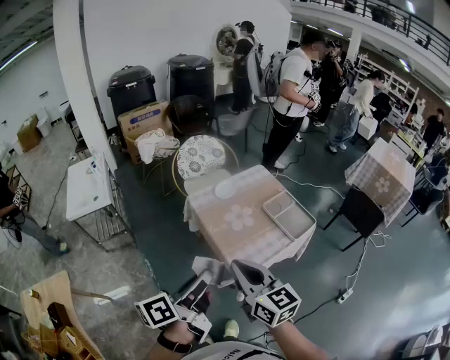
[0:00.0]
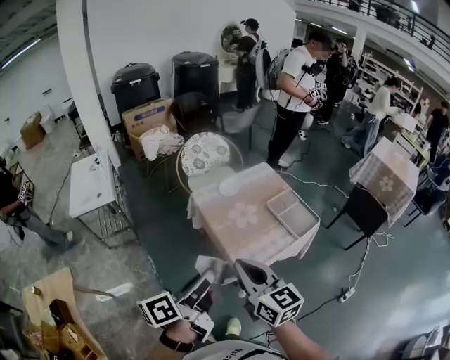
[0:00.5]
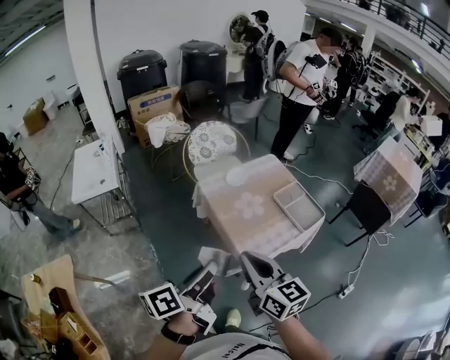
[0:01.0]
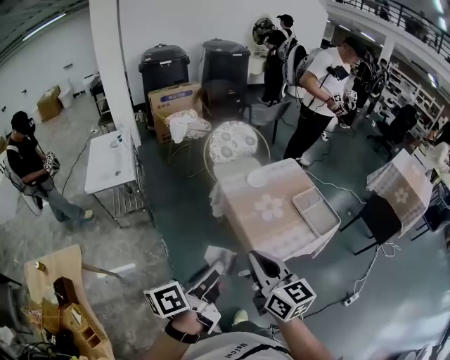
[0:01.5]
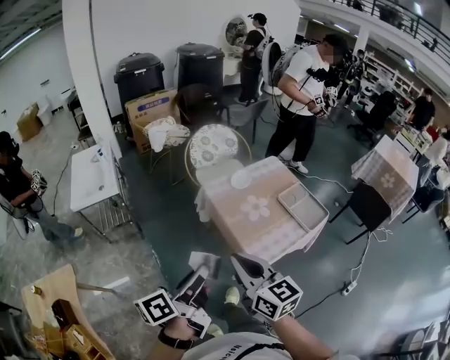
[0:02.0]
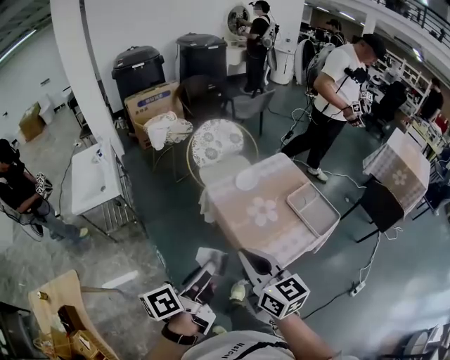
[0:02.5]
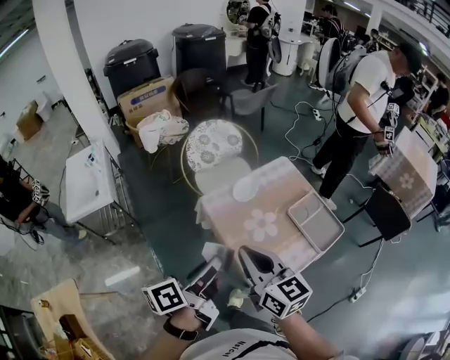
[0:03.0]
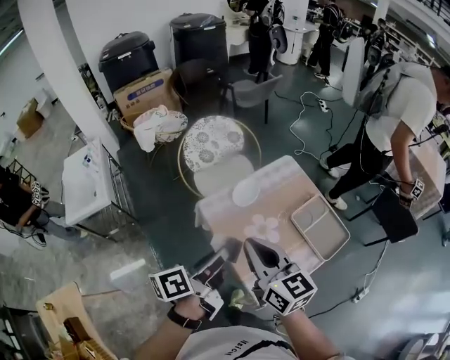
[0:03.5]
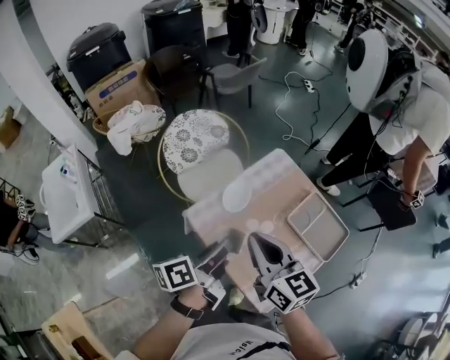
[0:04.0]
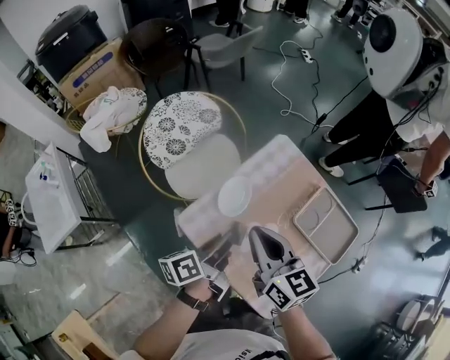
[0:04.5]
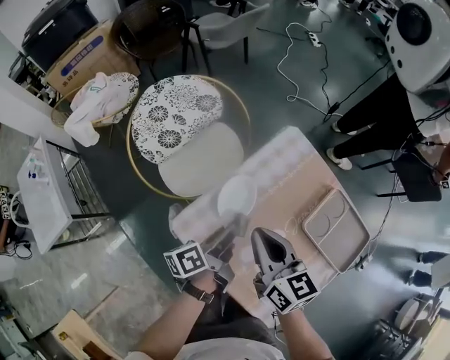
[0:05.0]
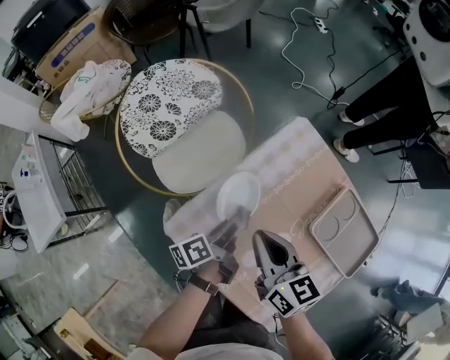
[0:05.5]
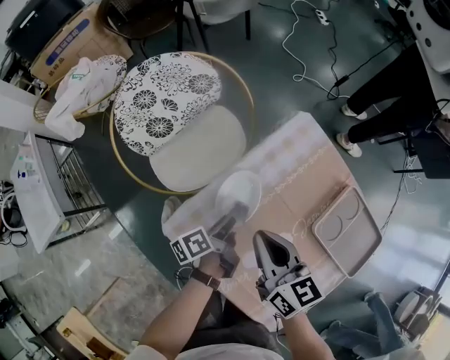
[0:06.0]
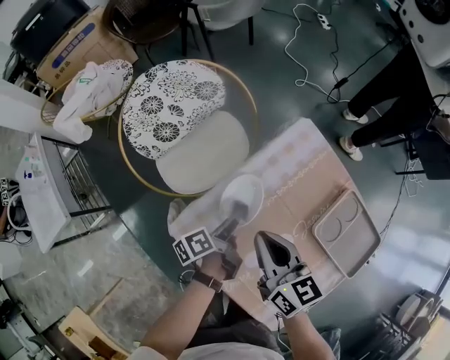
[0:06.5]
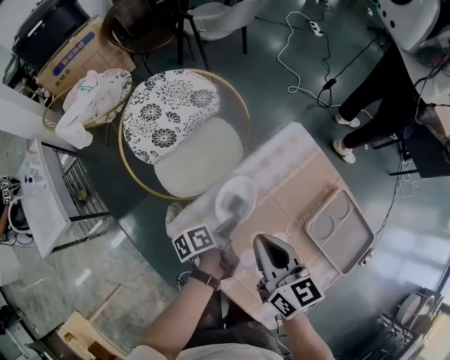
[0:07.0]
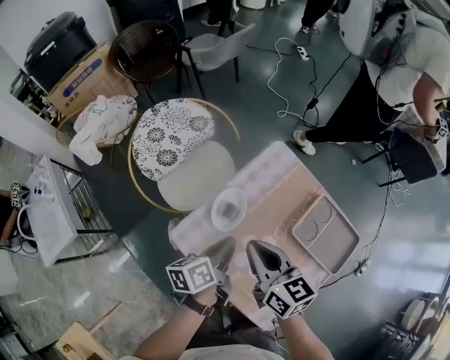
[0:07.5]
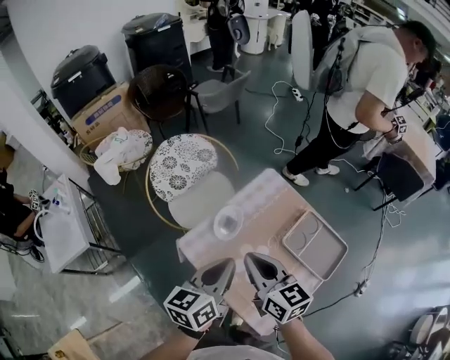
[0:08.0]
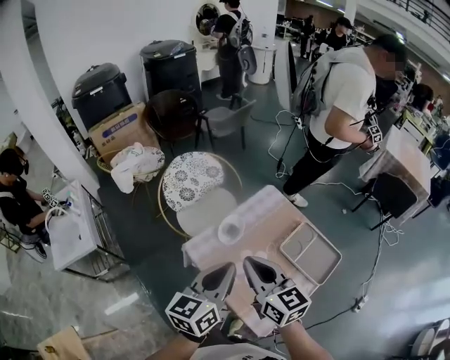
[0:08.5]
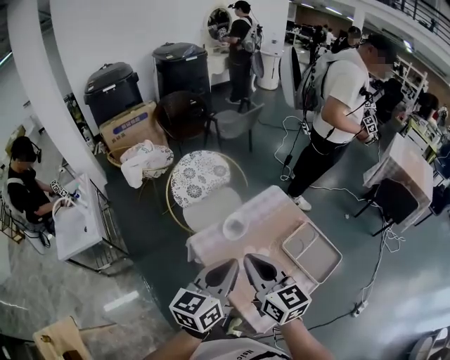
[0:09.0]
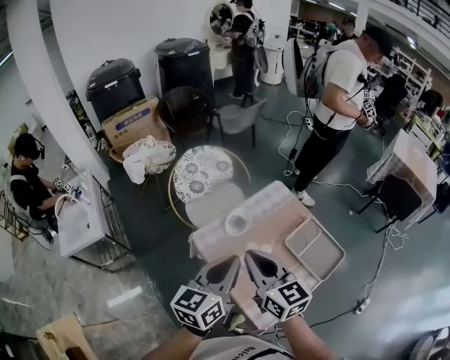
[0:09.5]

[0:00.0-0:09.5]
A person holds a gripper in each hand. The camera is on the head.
0:00.0 to 0:02.0: The grippers both shift to the left by some 10 cm.
0:02.0 to 0:04.0: The two grippers go roughly 40 cm forward.
0:04.0 to 0:05.5: Both grippers move downward and forward, some 30 cm.
0:05.5 to 0:07.5: The left gripper travels upward by approximately 15 cm, and opens, then closes again. Meanwhile the right gripper shifts roughly 10 cm upward.
0:07.5 to 0:09.5: Both grippers travel together upward and backward, approximately 25 cm. The left gripper swivels roughly 40 degrees, while the right gripper rotates about 20 degrees.

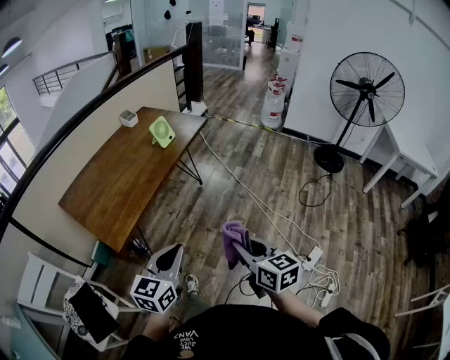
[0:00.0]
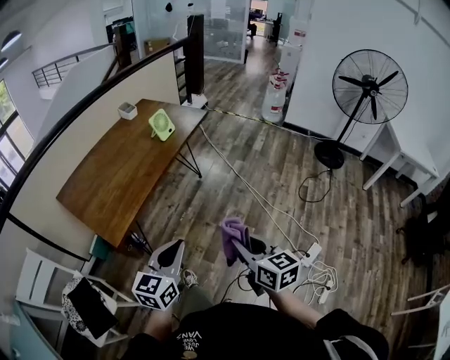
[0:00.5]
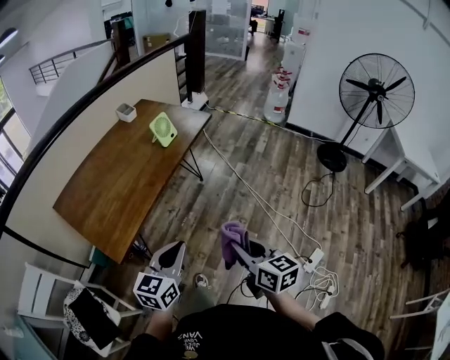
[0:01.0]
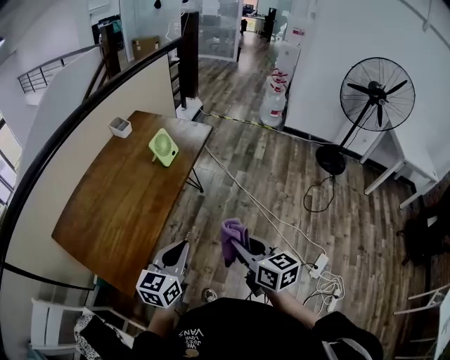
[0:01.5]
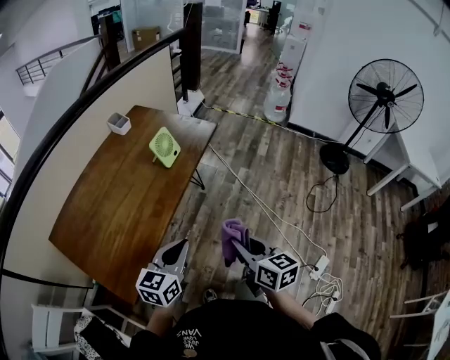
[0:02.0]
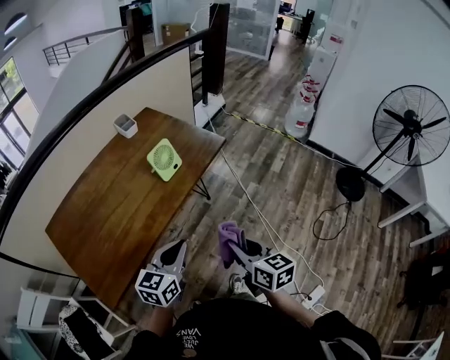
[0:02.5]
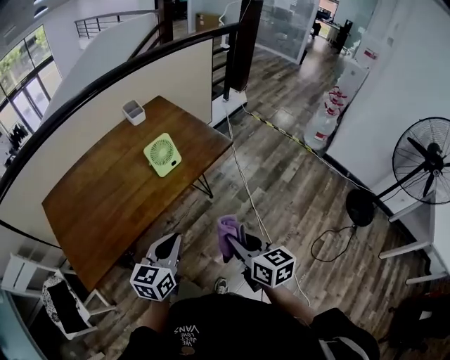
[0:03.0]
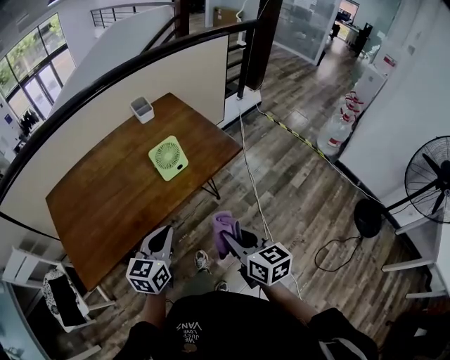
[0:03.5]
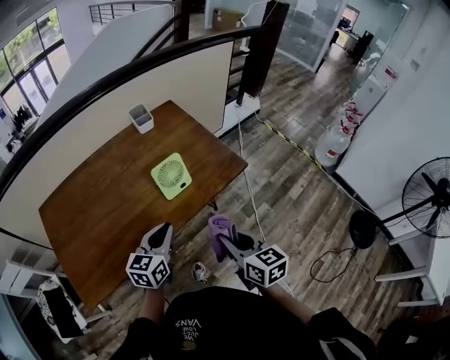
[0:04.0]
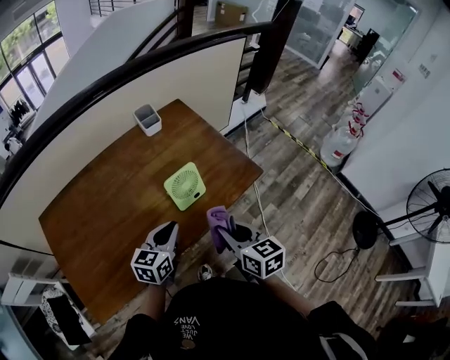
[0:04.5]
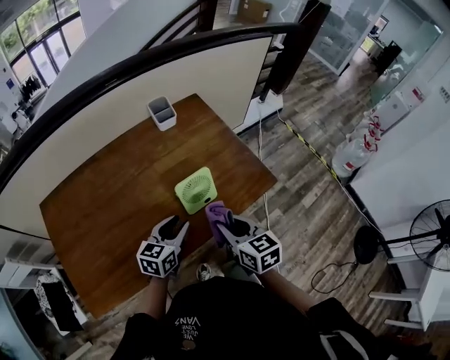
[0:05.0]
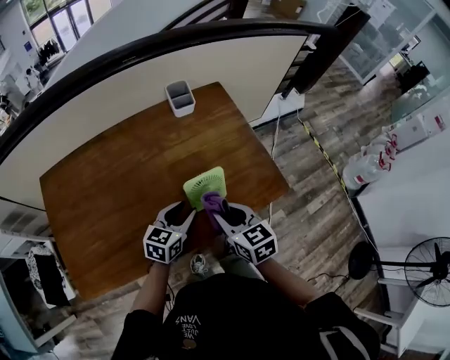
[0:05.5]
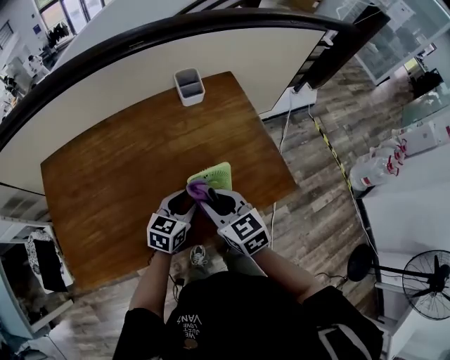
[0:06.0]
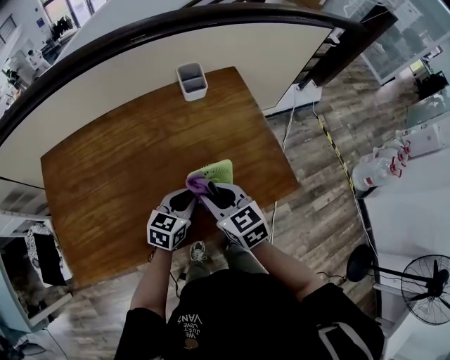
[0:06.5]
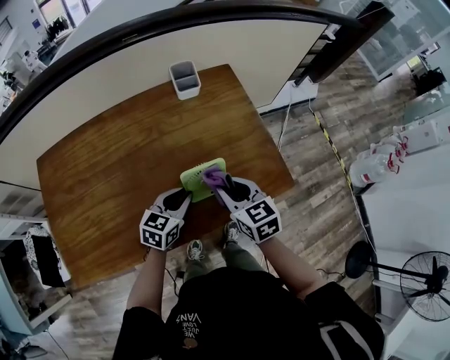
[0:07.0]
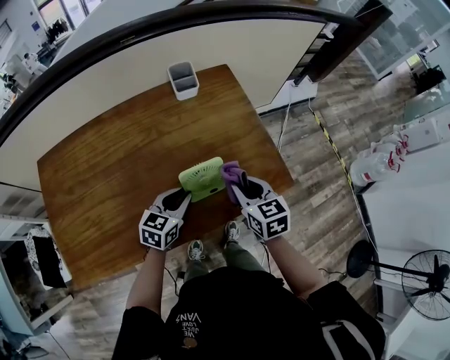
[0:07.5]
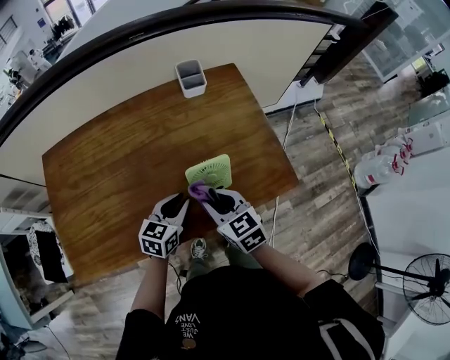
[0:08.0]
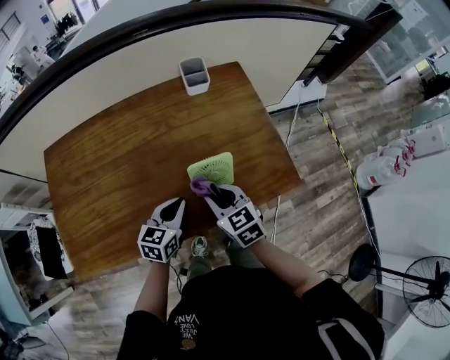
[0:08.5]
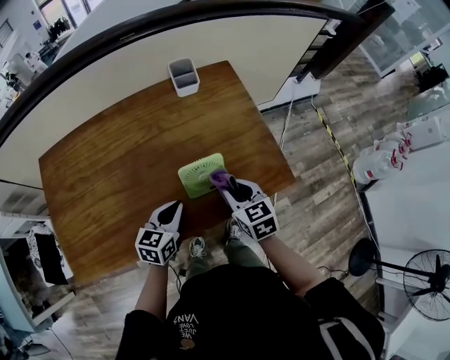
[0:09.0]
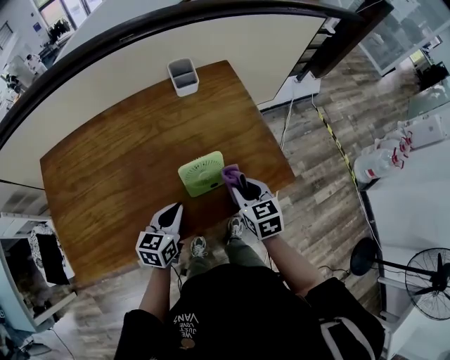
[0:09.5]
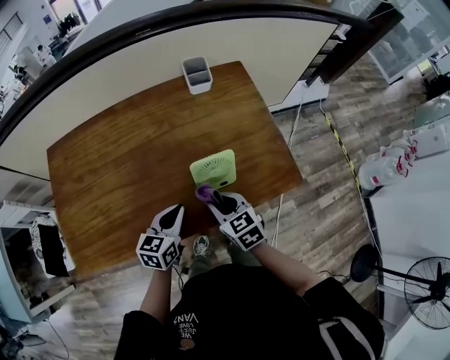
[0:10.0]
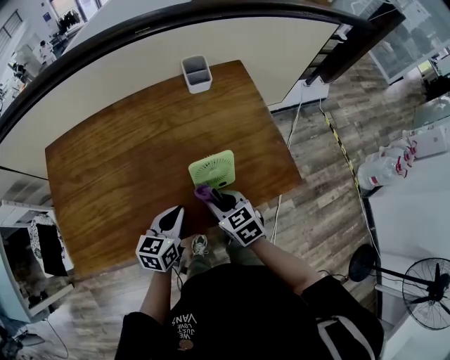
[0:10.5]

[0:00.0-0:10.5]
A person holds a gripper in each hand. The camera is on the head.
0:00.0 to 0:02.0: Both grippers move forward, approximately 25 cm.
0:02.0 to 0:04.0: The left gripper shifts by some 25 cm, and swivels roughly 30 degrees, while the right gripper shifts by roughly 30 cm, and swivels about 30 degrees.
0:04.0 to 0:06.5: The left gripper shifts about 20 cm forward and downward. The right gripper is displaced forward and to the left by about 30 cm, and swivels roughly 40 degrees.
0:06.5 to 0:08.5: The left gripper changes place by approximately 5 cm. The right gripper reaches roughly 10 cm to the right, then returns.
0:08.5 to 0:10.5: The right gripper goes to the right and returns, some 10 cm each way.

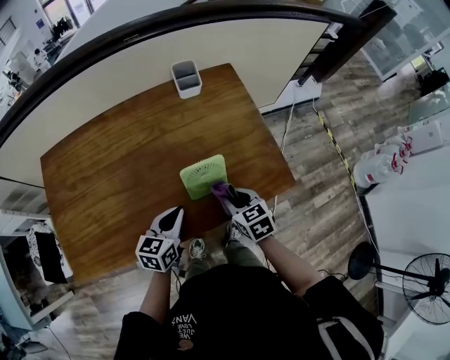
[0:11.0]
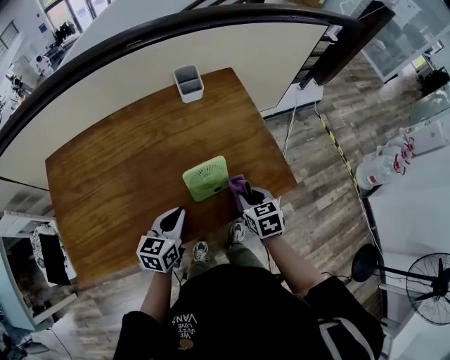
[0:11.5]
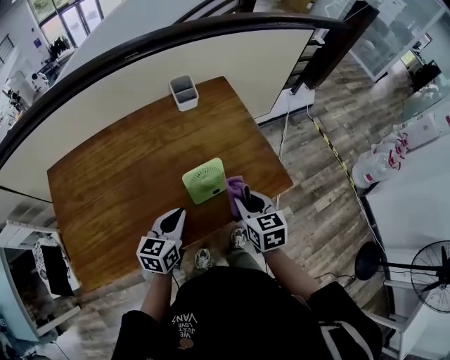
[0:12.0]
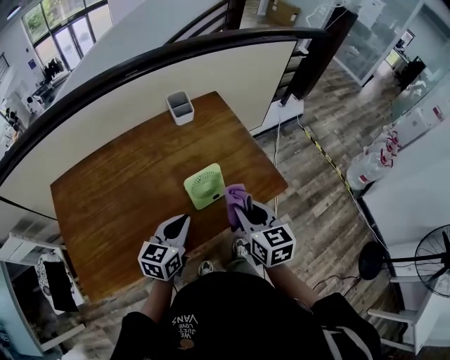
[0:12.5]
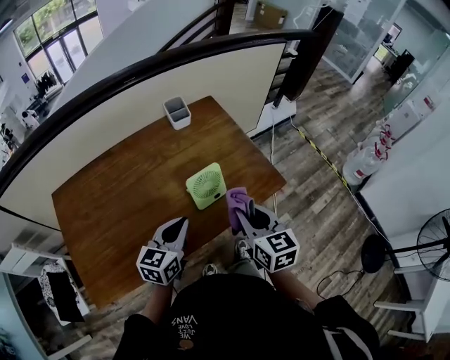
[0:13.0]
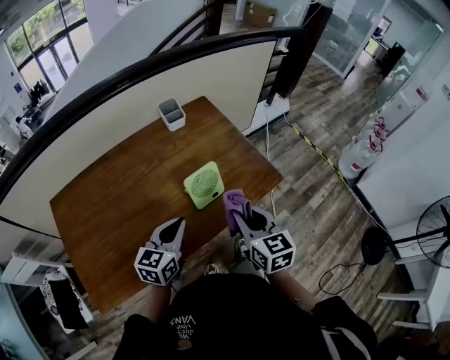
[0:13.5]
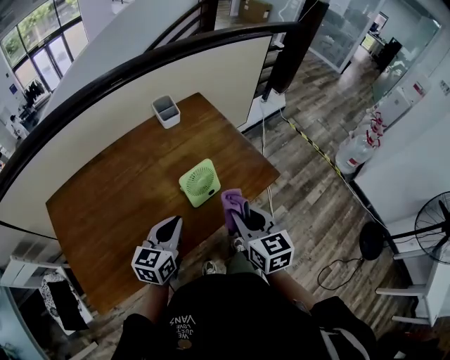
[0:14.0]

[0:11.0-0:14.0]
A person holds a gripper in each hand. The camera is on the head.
0:11.0 to 0:12.5: The left gripper shifts roughly 10 cm upward. Meanwhile the right gripper heads upward, covering about 15 cm, and turns by roughly 30 degrees.
0:12.5 to 0:14.0: The grippers make only small movements.

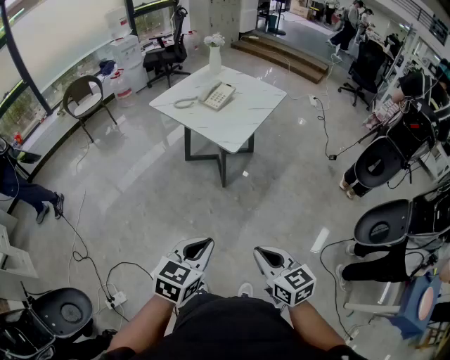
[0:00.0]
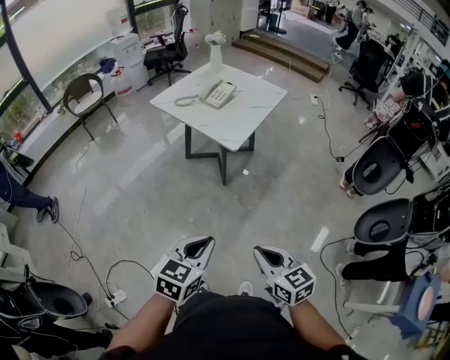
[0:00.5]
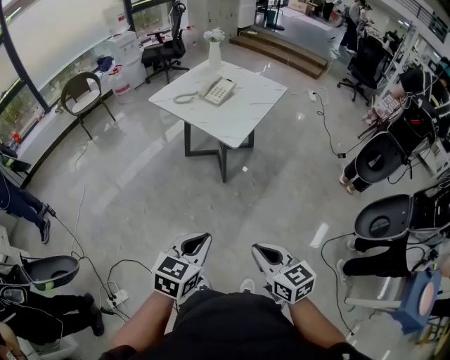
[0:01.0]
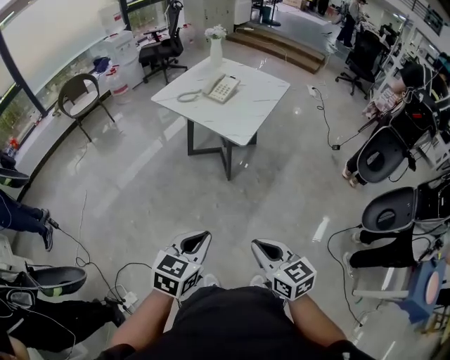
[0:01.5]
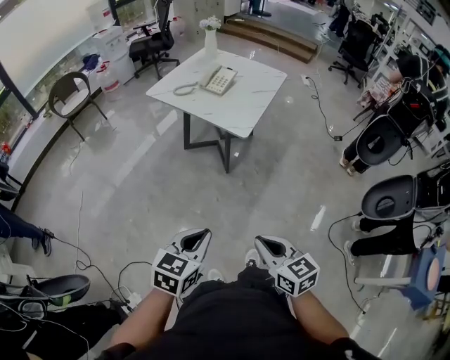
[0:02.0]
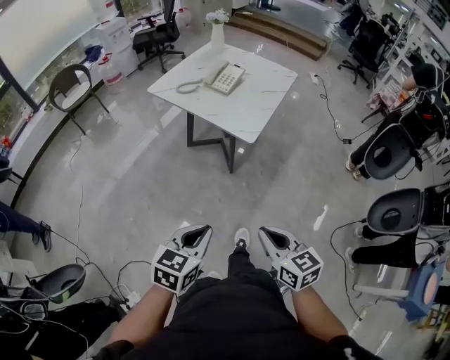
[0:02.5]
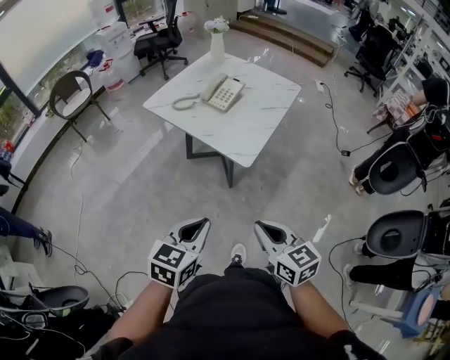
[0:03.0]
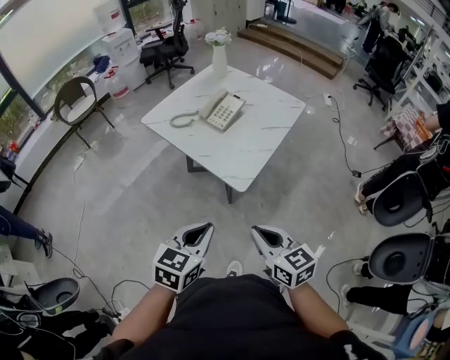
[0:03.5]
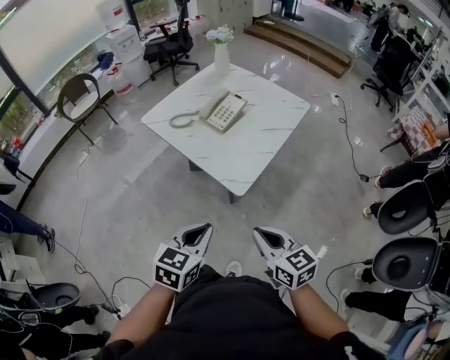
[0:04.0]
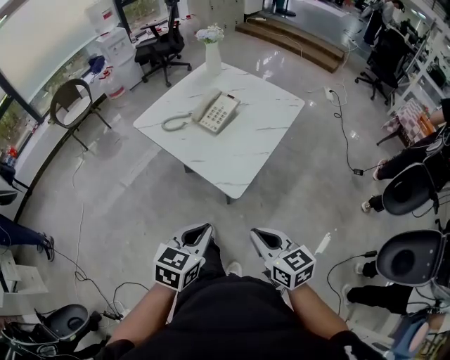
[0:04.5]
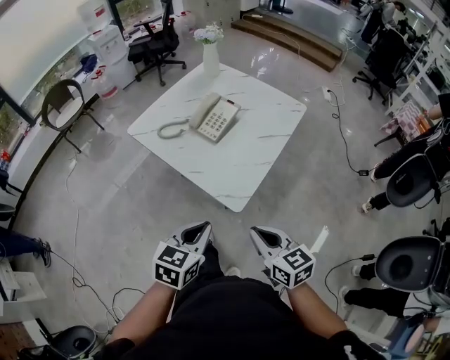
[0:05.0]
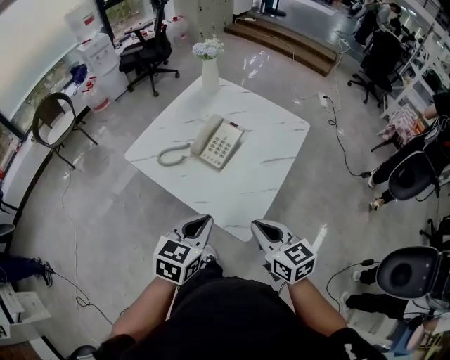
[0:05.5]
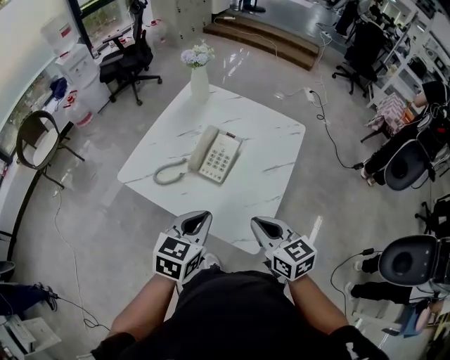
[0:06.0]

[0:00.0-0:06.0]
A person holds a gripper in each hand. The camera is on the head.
0:00.0 to 0:02.0: The grippers both shift to the left by roughly 10 cm.
0:02.0 to 0:04.0: The two grippers go approximately 35 cm forward.
0:04.0 to 0:06.0: The two grippers go approximately 30 cm forward.
